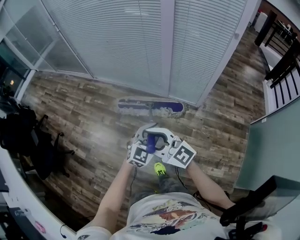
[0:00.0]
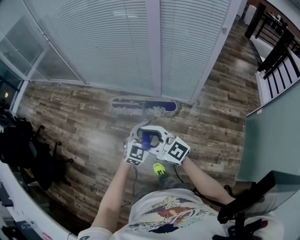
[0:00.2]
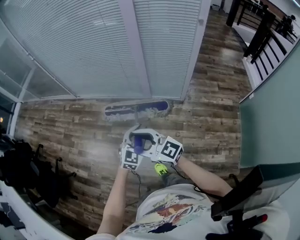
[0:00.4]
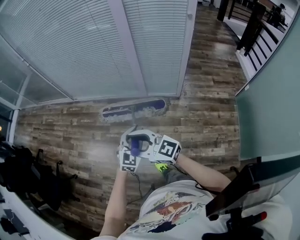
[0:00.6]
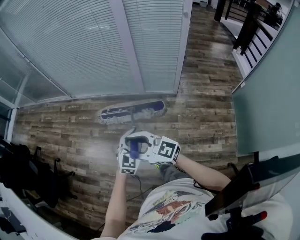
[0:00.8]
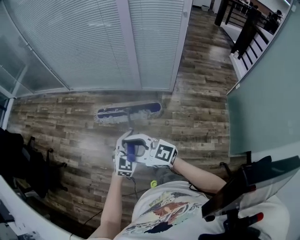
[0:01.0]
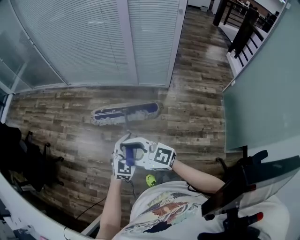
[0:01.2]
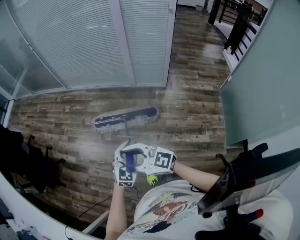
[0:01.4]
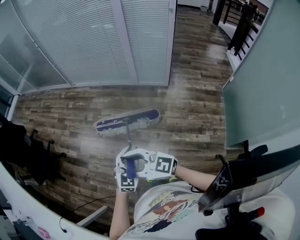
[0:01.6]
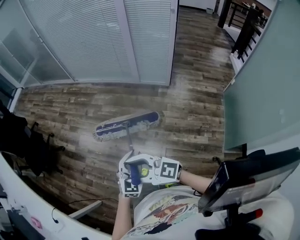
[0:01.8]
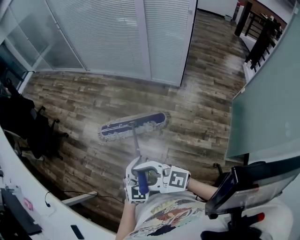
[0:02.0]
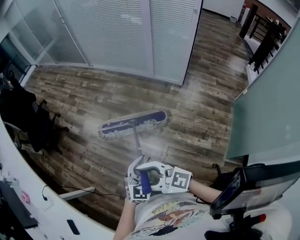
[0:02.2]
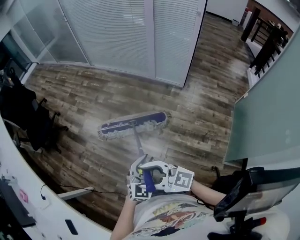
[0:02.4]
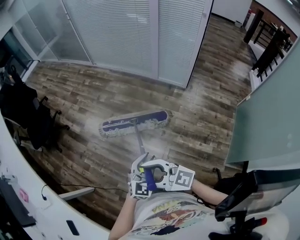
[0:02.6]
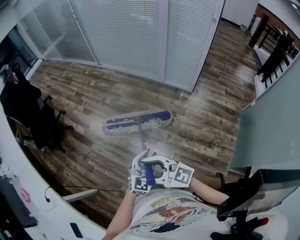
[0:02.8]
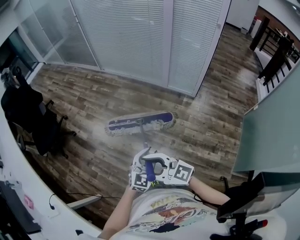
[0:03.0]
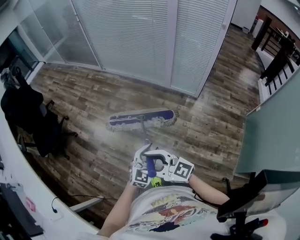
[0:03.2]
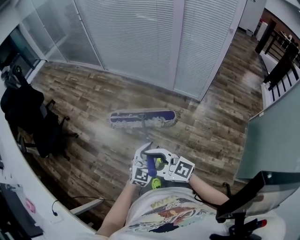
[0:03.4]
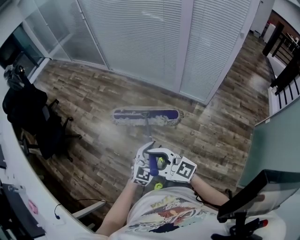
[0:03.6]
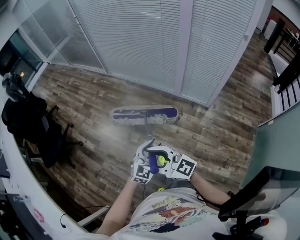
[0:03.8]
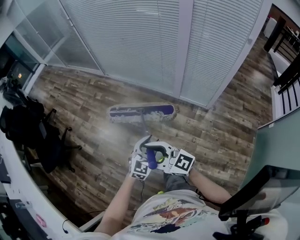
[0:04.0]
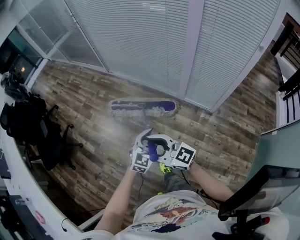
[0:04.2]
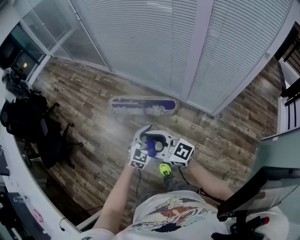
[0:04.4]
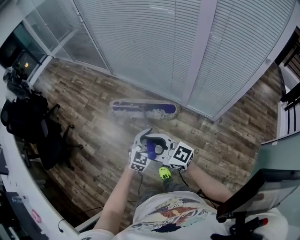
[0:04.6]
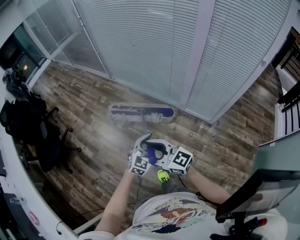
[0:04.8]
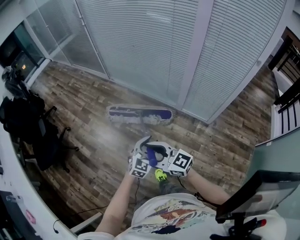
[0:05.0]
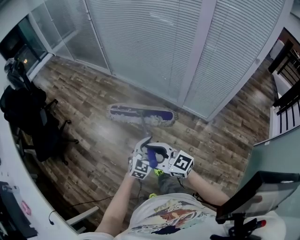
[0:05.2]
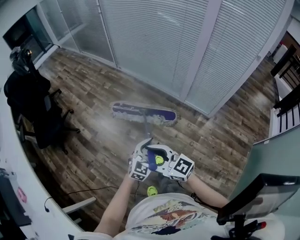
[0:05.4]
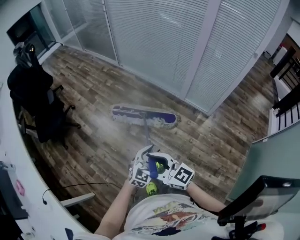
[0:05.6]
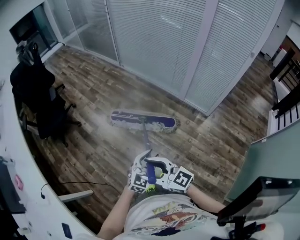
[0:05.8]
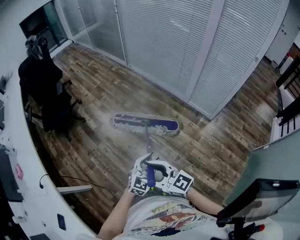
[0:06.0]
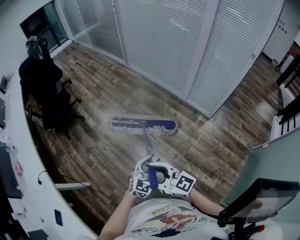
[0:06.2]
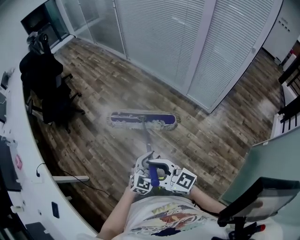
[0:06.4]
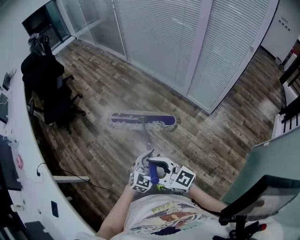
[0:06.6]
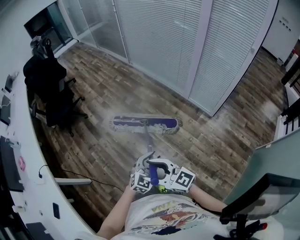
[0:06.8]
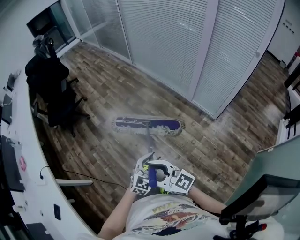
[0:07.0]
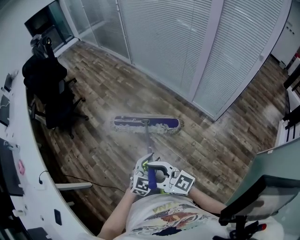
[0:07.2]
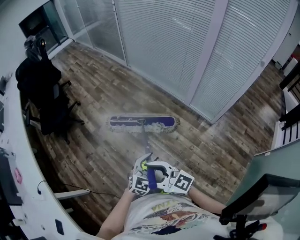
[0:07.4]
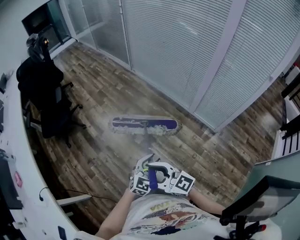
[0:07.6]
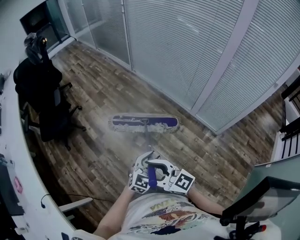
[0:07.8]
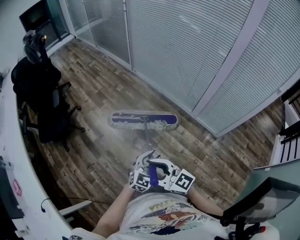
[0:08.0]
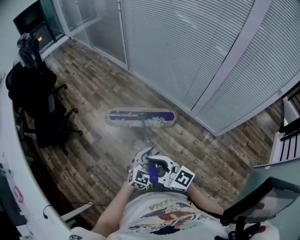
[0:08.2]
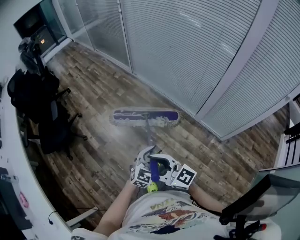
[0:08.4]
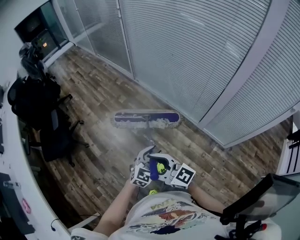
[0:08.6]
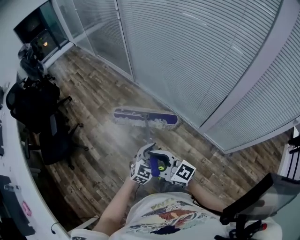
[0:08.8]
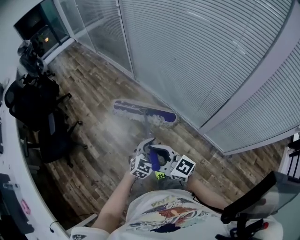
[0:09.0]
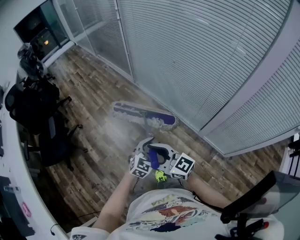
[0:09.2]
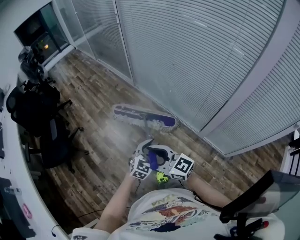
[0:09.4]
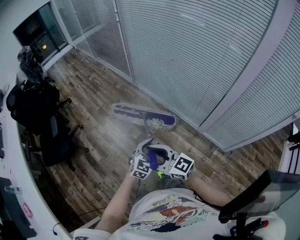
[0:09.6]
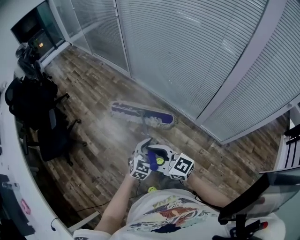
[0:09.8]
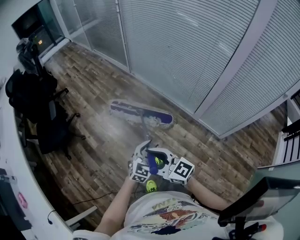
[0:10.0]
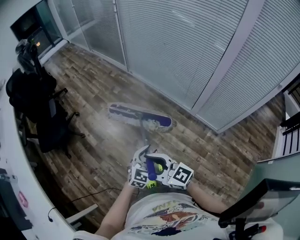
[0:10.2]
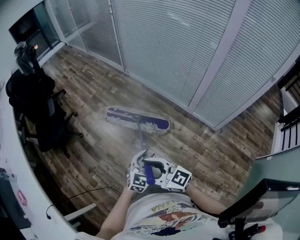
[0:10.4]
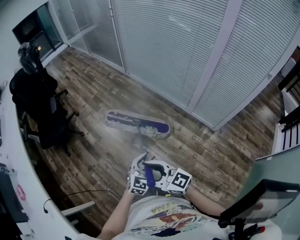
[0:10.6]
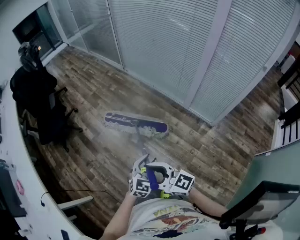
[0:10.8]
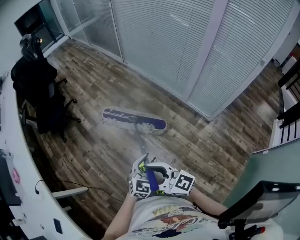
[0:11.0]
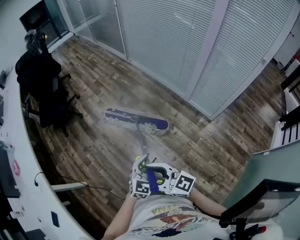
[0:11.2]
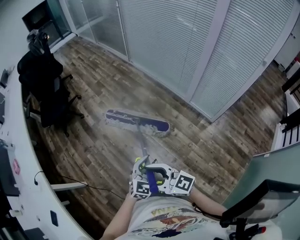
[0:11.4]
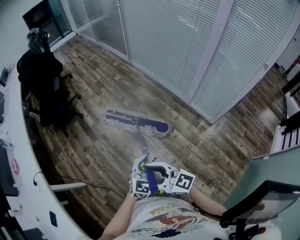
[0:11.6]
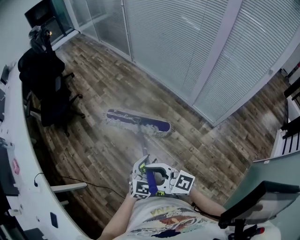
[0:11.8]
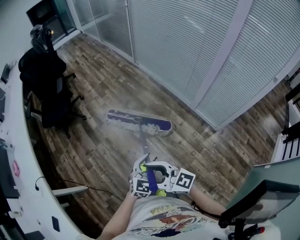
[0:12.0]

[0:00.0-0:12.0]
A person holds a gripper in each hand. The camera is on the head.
0:00.0 to 0:01.6: The two grippers travel together, backward, roughly 50 cm.
0:01.6 to 0:03.0: The right gripper moves approximately 20 cm backward and comes back; the left gripper travels backward and back again, roughly 15 cm each way.
0:03.0 to 0:04.4: The two grippers travel together, forward, approximately 50 cm.
0:04.4 to 0:06.0: The pair of grippers is taken backward and to the left, roughly 50 cm.
0:06.0 to 0:07.6: Both grippers move forward, approximately 15 cm.
0:07.6 to 0:09.0: The two grippers travel together, forward, about 50 cm.
0:09.0 to 0:10.4: Both grippers move backward and to the left, approximately 40 cm.
0:10.4 to 0:12.0: Both grippers travel together backward, about 15 cm.

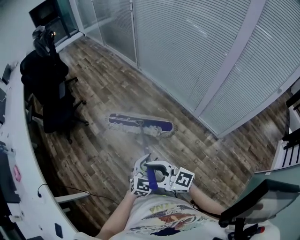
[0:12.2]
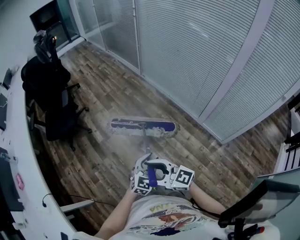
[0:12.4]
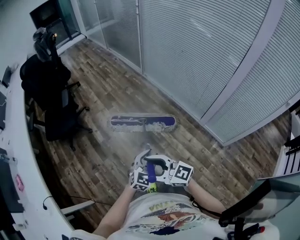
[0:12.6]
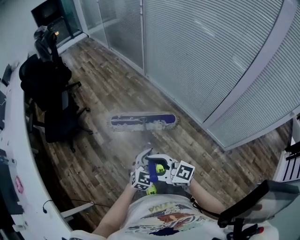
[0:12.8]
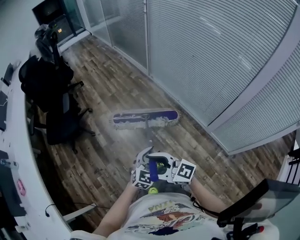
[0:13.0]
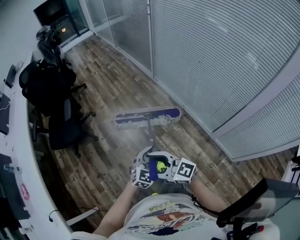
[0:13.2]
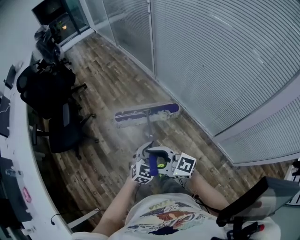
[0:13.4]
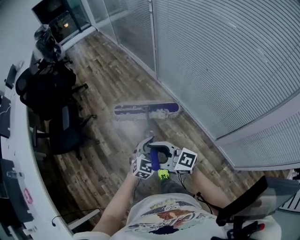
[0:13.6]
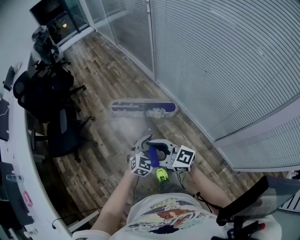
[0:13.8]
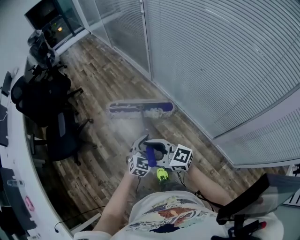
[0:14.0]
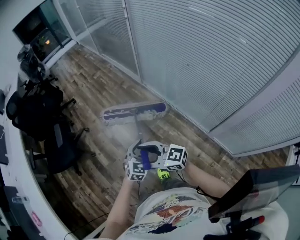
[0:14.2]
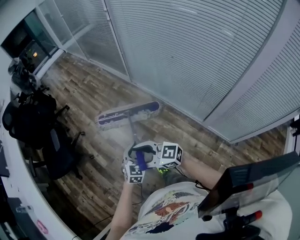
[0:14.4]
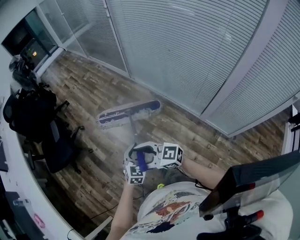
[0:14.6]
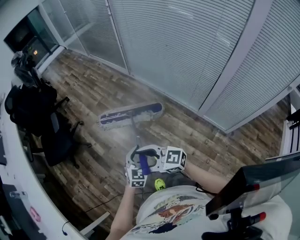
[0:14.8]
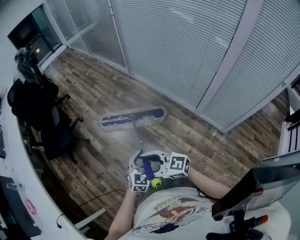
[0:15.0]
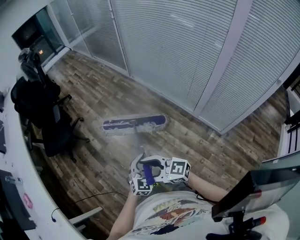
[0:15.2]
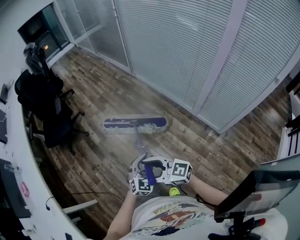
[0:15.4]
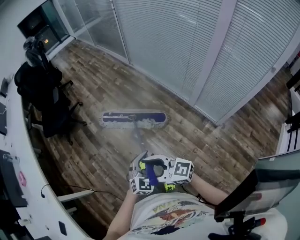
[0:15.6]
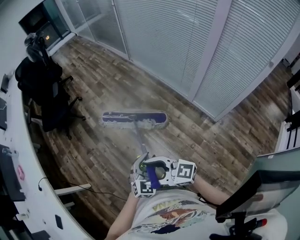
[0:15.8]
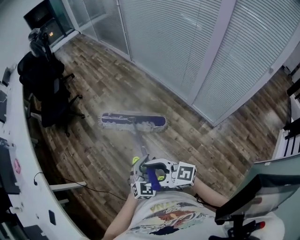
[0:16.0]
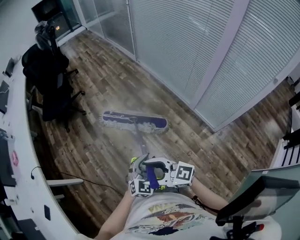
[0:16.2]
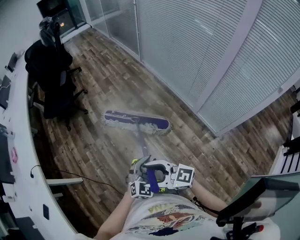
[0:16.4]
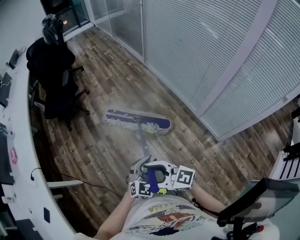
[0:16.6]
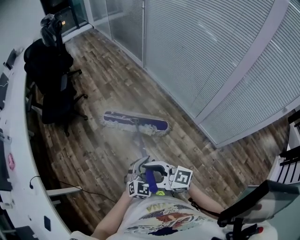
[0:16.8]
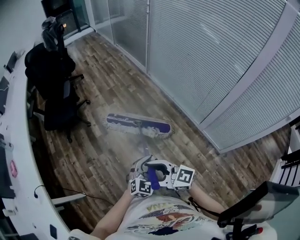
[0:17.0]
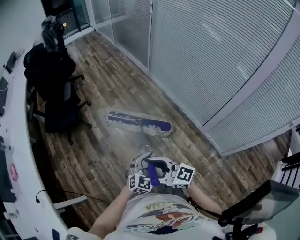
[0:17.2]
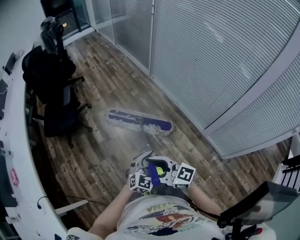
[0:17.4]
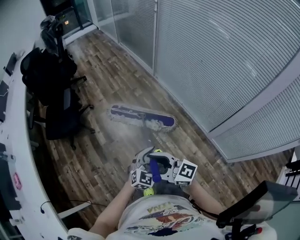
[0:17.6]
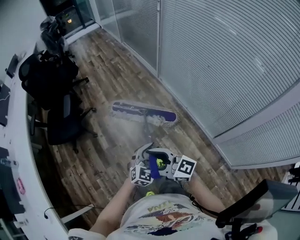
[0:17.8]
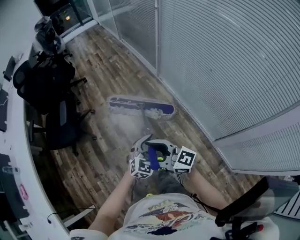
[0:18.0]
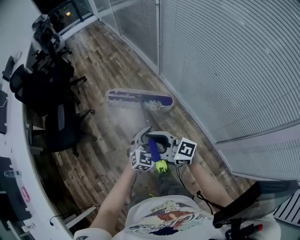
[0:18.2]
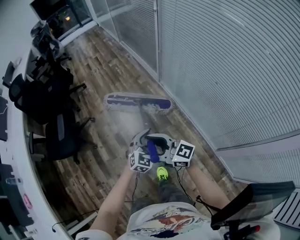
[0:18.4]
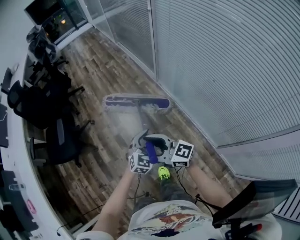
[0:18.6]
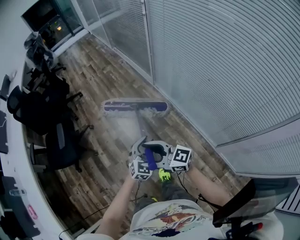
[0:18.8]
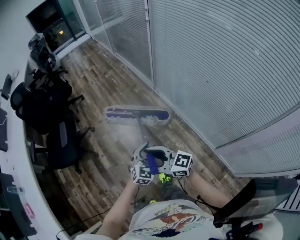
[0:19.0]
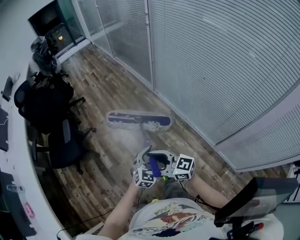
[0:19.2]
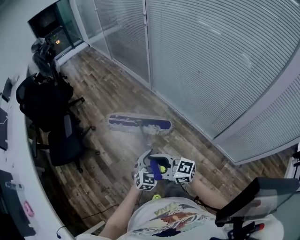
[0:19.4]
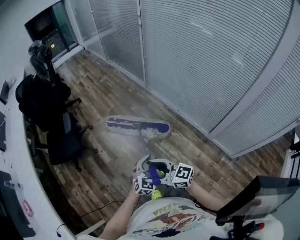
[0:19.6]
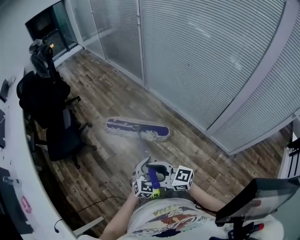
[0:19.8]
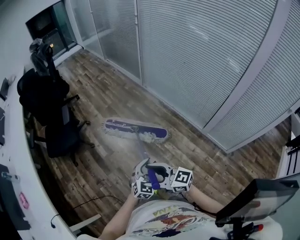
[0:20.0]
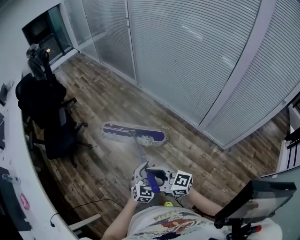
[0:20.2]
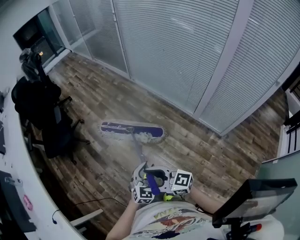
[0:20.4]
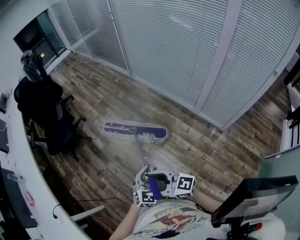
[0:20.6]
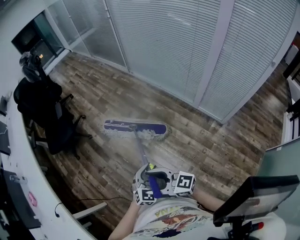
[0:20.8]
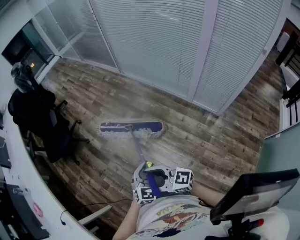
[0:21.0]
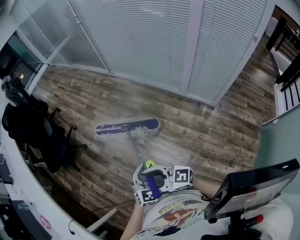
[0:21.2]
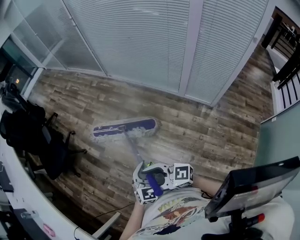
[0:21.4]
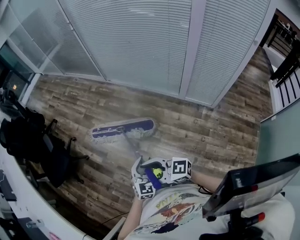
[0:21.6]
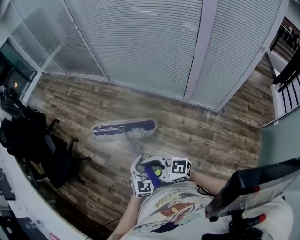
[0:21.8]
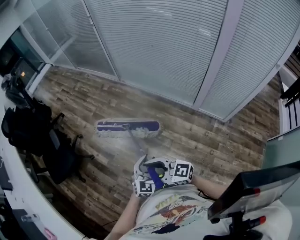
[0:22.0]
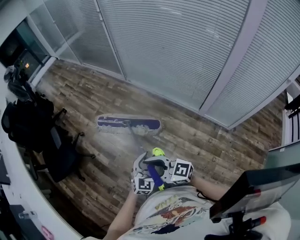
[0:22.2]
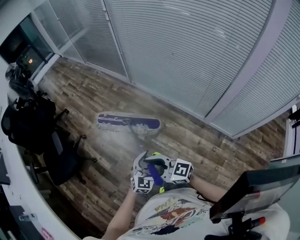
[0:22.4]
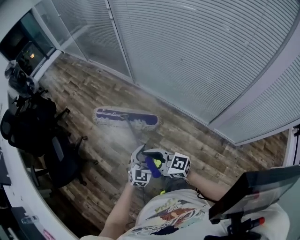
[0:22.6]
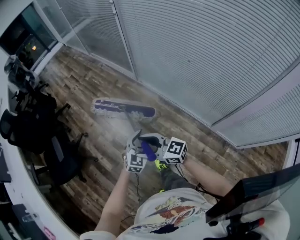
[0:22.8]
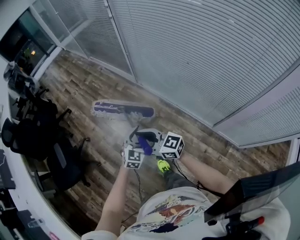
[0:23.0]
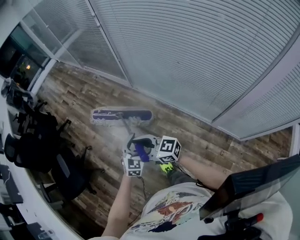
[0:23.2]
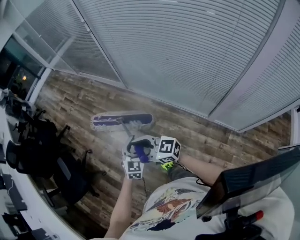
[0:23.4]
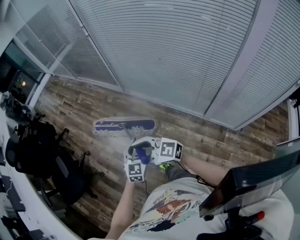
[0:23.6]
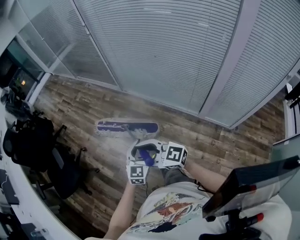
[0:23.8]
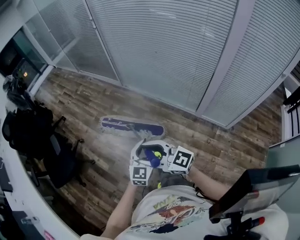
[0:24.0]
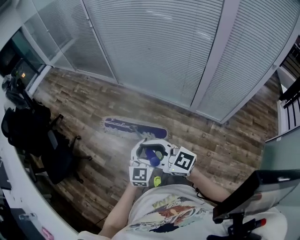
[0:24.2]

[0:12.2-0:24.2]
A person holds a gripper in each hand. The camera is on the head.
0:12.2 to 0:13.8: The two grippers travel together, forward, some 60 cm.
0:13.8 to 0:15.2: The two grippers travel together, backward and to the left, approximately 50 cm.
0:15.2 to 0:16.6: The grippers both shift backward by about 15 cm.
0:16.6 to 0:18.2: Both grippers are carried forward, some 70 cm.
0:18.2 to 0:19.8: The two grippers travel together, backward and to the left, roughly 40 cm.
0:19.8 to 0:21.2: The two grippers go some 30 cm backward.
0:21.2 to 0:22.6: Both grippers are carried forward, about 60 cm.
0:22.6 to 0:24.2: Both grippers move backward, roughly 30 cm. The right gripper changes its angle by about 20 degrees.
